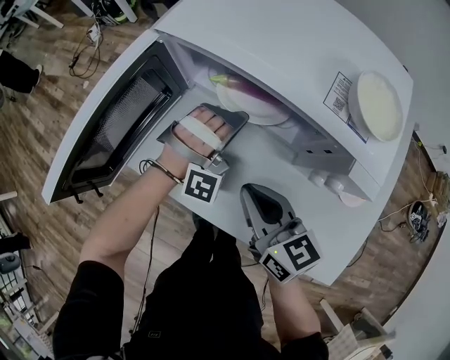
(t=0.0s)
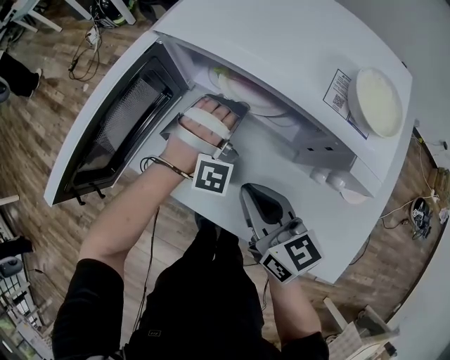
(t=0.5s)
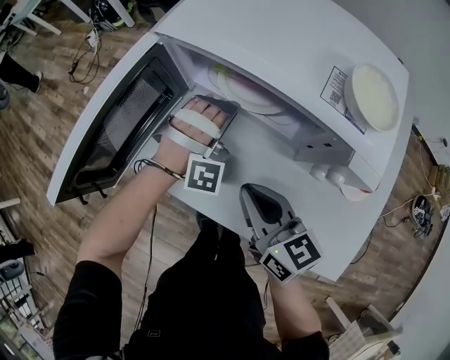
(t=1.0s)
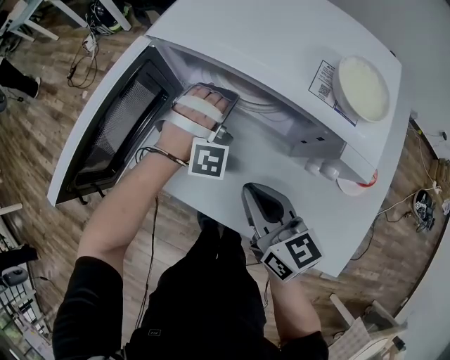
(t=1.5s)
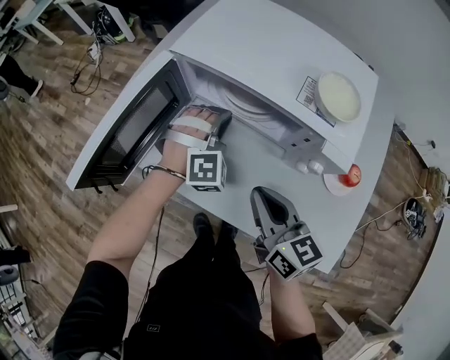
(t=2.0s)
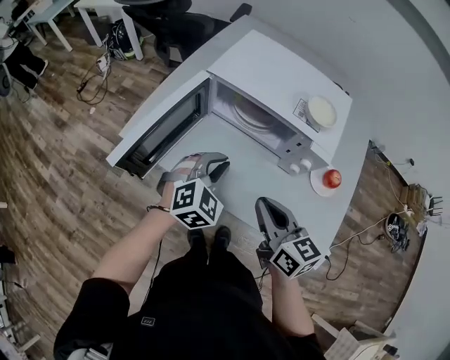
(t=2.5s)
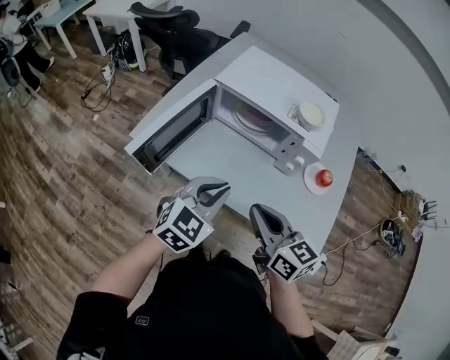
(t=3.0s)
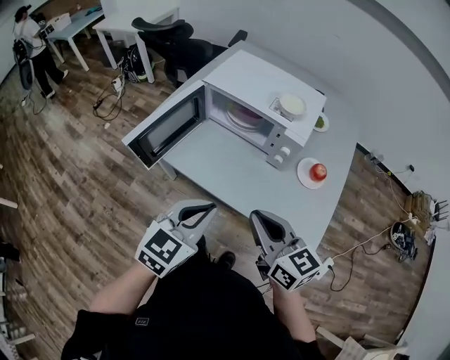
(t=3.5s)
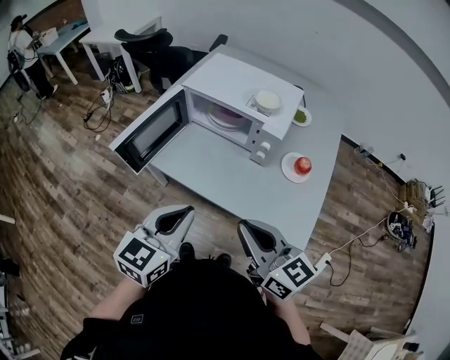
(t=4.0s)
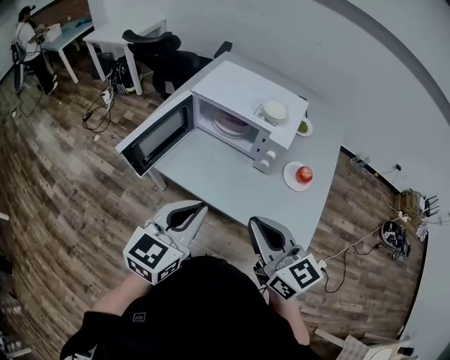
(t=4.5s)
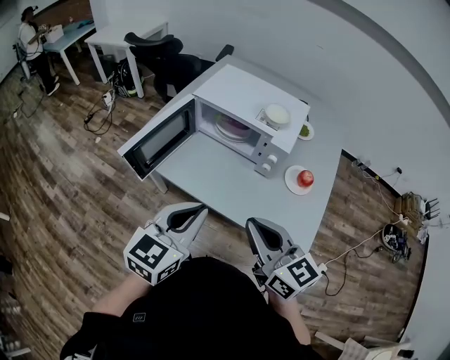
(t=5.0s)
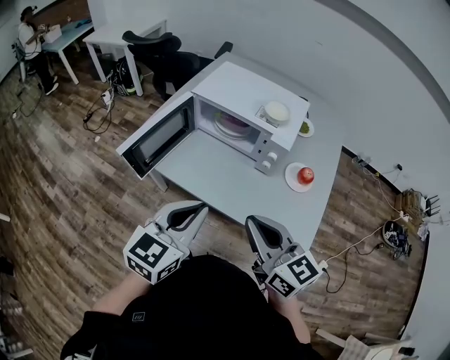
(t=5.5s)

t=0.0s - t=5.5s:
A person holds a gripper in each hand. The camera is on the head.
t=0.0s - t=2.0s: The left gripper changes its angle by some 20 degrees. Meanwhile the right gripper moves upward, roughly 5 cm.
t=2.0s - t=3.5s: The right gripper heads backward and upward, covering roughly 25 cm; the left gripper is displaced backward and upward by roughly 40 cm, and rolls counterclockwise, seen from behind, by some 60 degrees.
t=3.5s - t=5.5s: The grippers stay close to where they were, moving slightly.

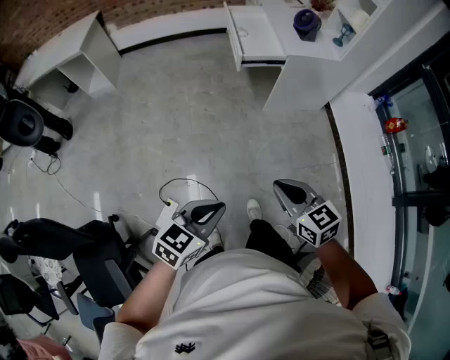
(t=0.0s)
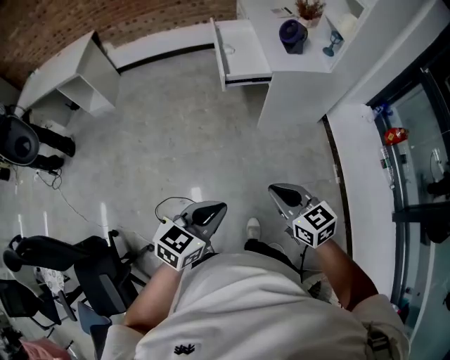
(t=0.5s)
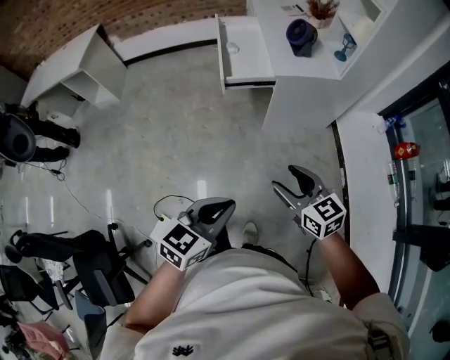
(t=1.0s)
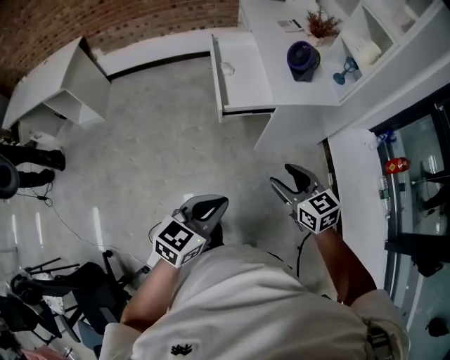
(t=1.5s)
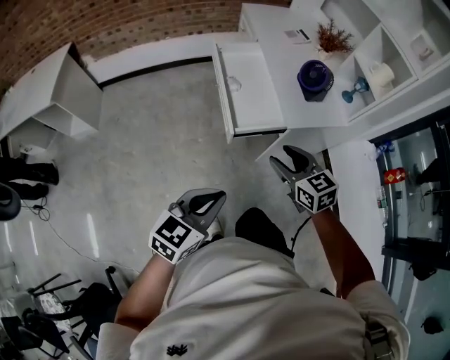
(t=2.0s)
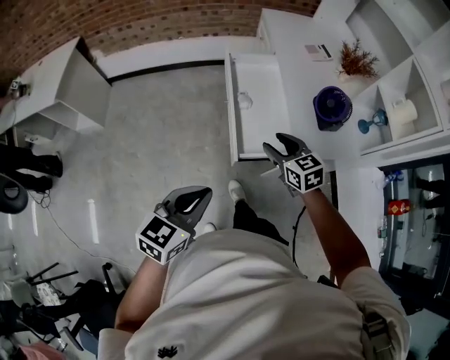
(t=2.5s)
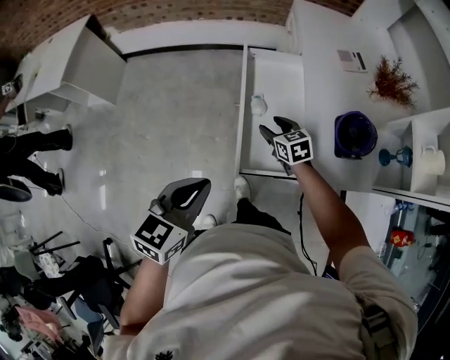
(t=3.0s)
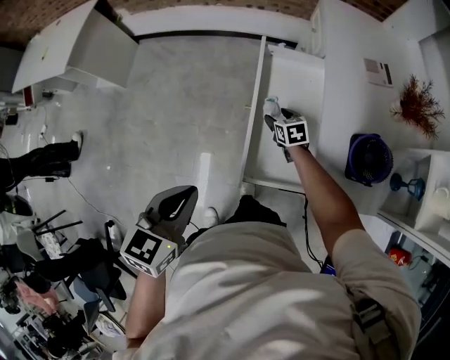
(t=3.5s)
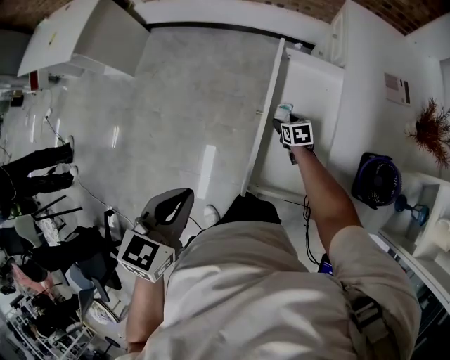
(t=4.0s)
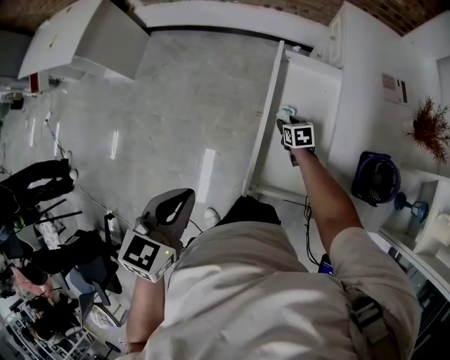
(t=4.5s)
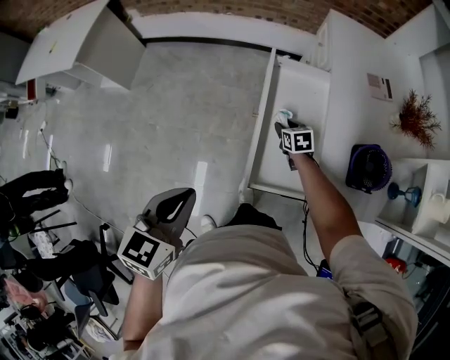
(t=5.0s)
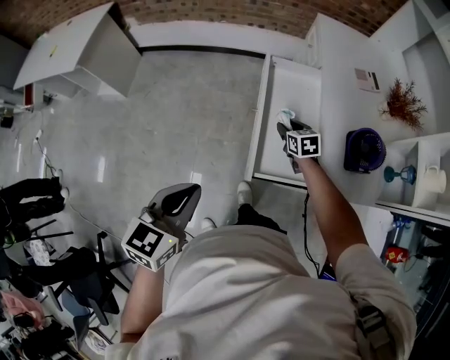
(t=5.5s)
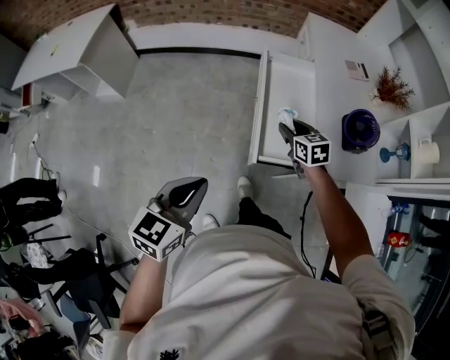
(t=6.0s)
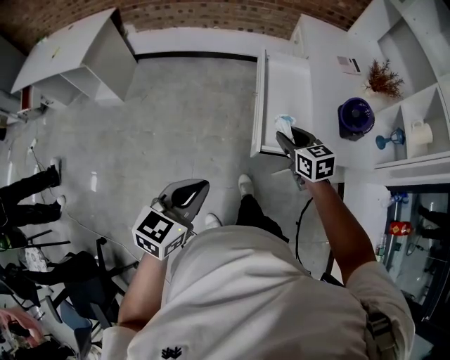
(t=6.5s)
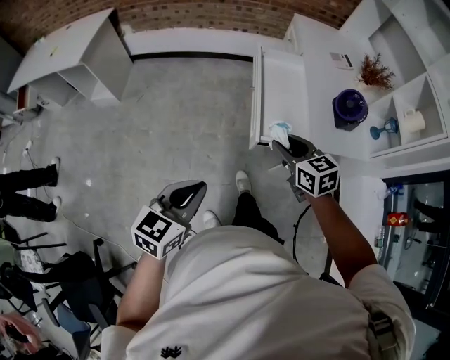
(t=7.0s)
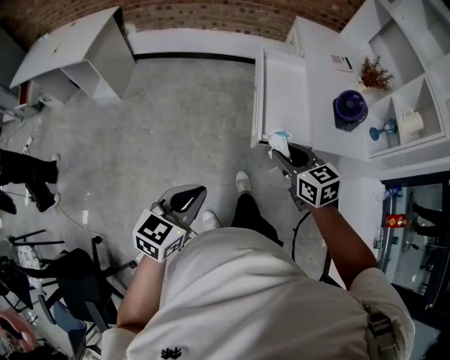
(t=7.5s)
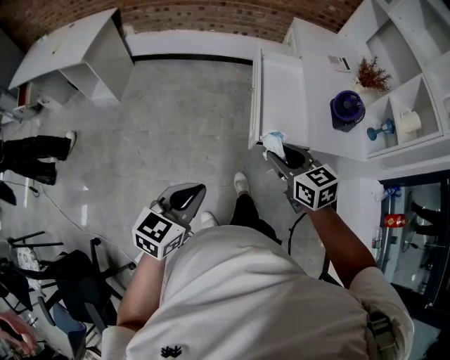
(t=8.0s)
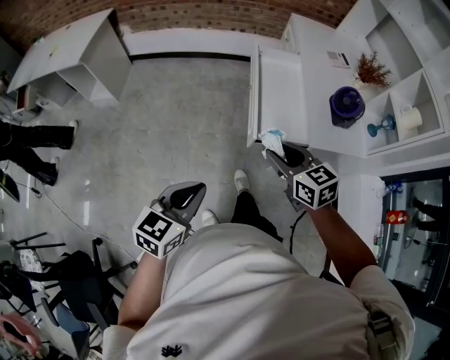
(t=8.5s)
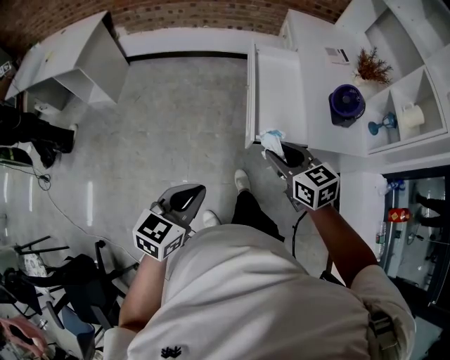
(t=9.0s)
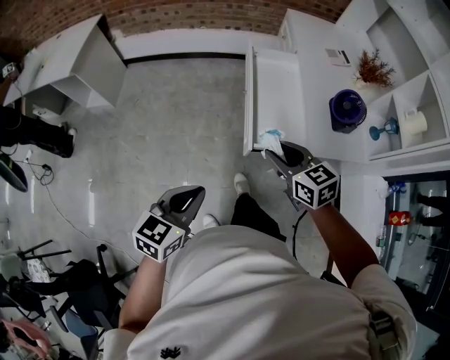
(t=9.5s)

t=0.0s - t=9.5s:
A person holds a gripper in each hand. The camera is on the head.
t=0.0s - t=2.0s: The two grippers travel together, forward, roughly 50 cm. The right gripper opens its fingers.
t=2.0s - t=4.0s: The left gripper ends up roughly 35 cm from where it was, and rotates approximately 40 degrees, while the right gripper shifts by about 60 cm, and turns by roughly 30 degrees.
t=4.0s - t=5.5s: The right gripper goes roughly 20 cm upward and backward, and closes its fingers. Meanwhile the left gripper heads backward, covering approximately 10 cm.
t=5.5s - t=7.5s: The left gripper heads backward, covering about 25 cm, while the right gripper heads backward and upward, covering approximately 40 cm.
t=7.5s - t=9.5s: The grippers both shift forward by roughly 5 cm.

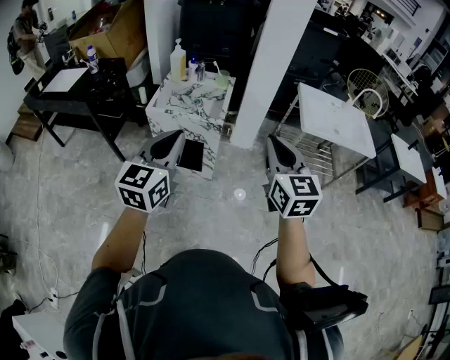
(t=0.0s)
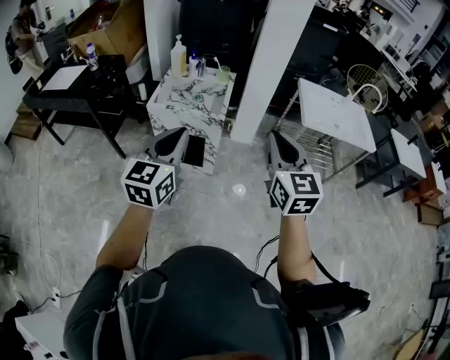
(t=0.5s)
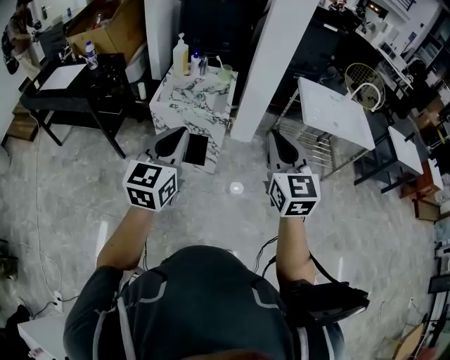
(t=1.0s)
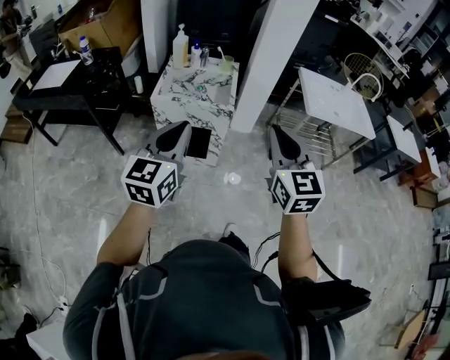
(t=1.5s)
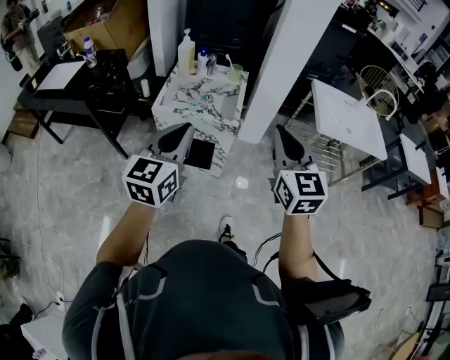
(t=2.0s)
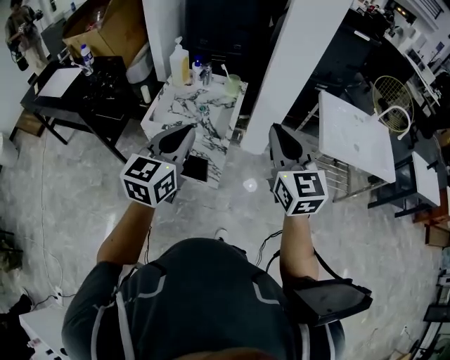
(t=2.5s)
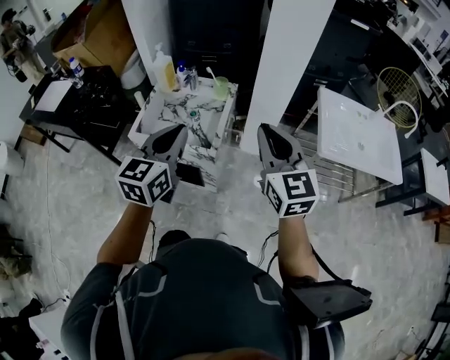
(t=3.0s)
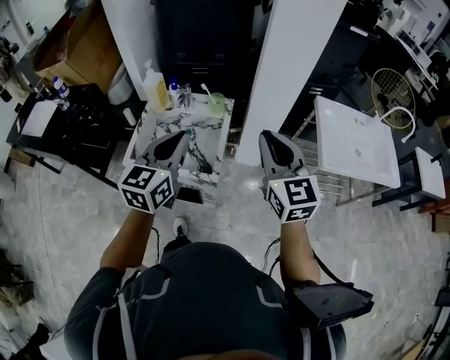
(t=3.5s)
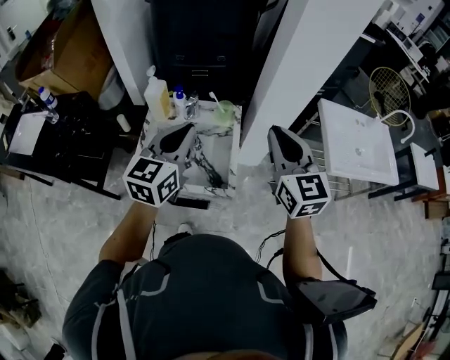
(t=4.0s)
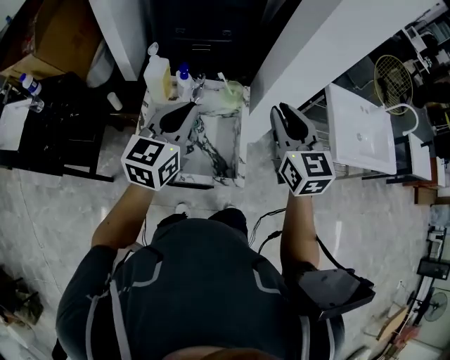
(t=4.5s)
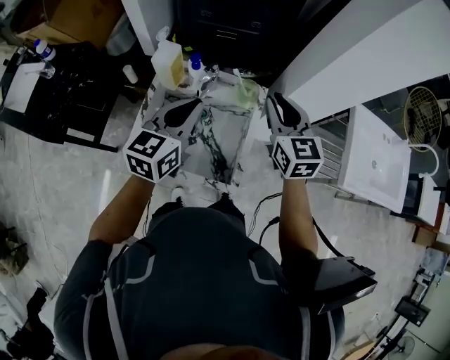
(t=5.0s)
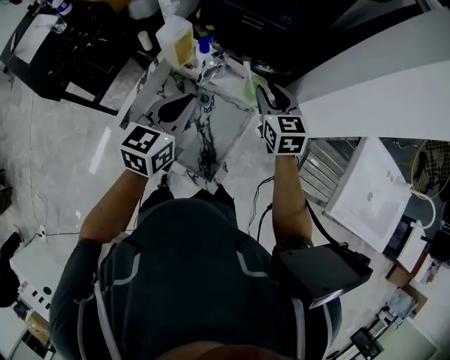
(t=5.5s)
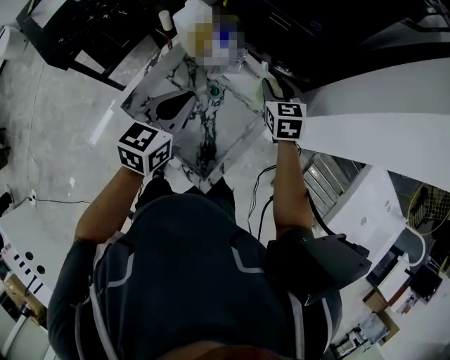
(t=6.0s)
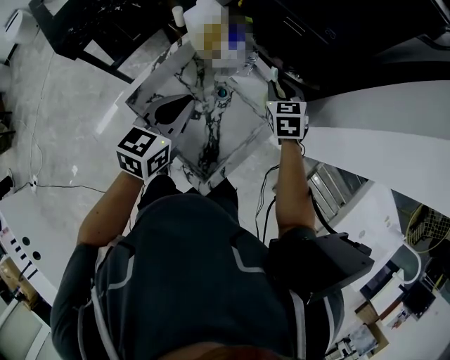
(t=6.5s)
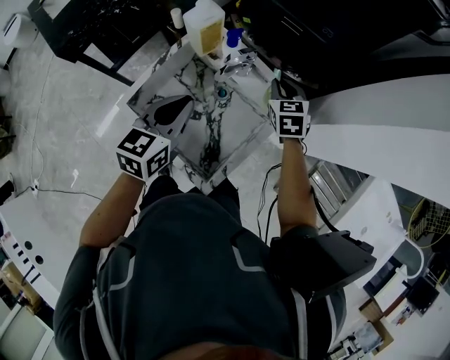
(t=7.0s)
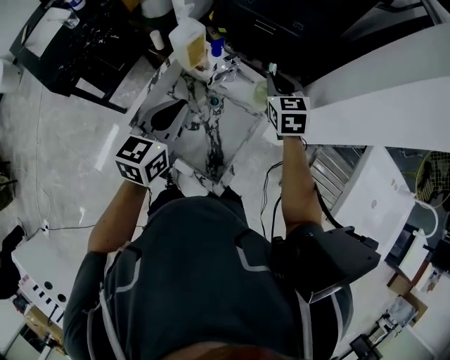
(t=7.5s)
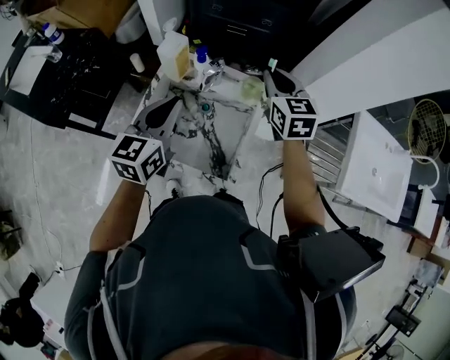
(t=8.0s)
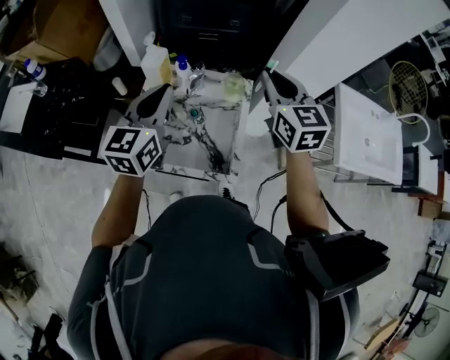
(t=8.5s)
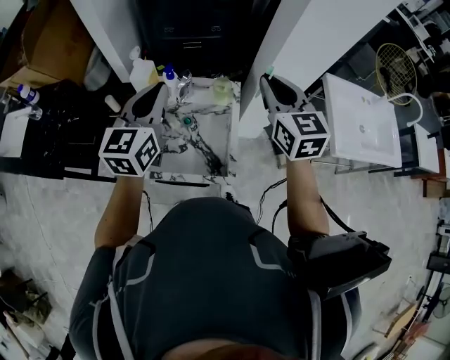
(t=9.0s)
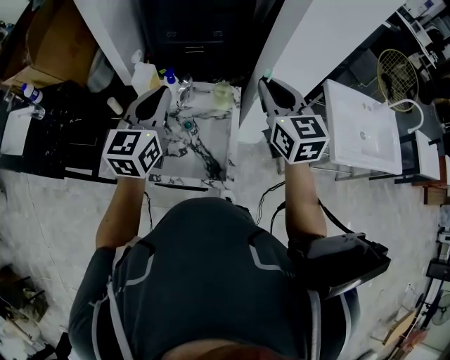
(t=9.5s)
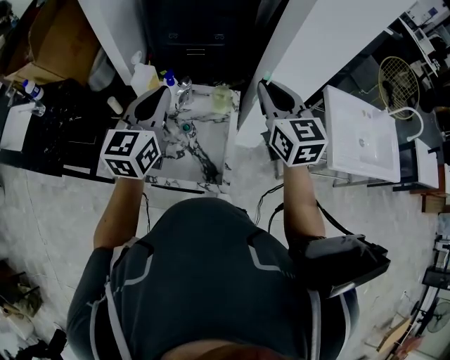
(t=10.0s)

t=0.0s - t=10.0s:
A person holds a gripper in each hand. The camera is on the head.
t=0.0s - t=2.0s: Both grippers travel together forward and to the left, approximately 10 cm.
t=2.0s - t=4.0s: Both grippers travel together forward, about 40 cm.
t=4.0s - t=6.0s: The left gripper shifts approximately 15 cm downward, and rotates some 30 degrees. Meanwhile the right gripper ends up roughly 50 cm from where it was, points its fingers approximately 30 degrees further downward, and opens.
t=6.0s - t=8.0s: The left gripper is displaced upward by about 10 cm, while the right gripper goes some 15 cm upward, and closes.
t=8.0s - t=10.0s: The left gripper is displaced upward by about 10 cm. The right gripper is displaced upward, backward and to the right by roughly 15 cm.

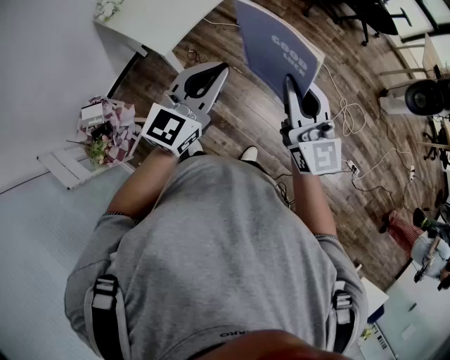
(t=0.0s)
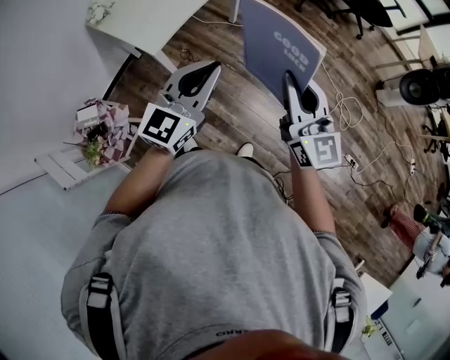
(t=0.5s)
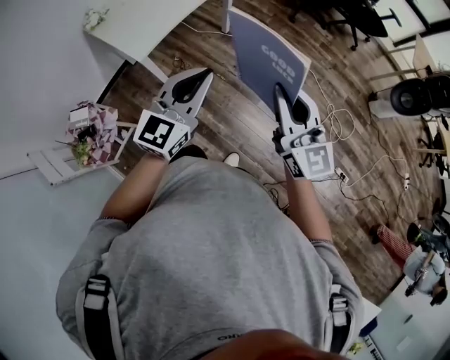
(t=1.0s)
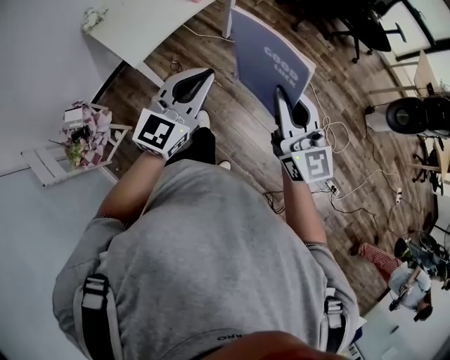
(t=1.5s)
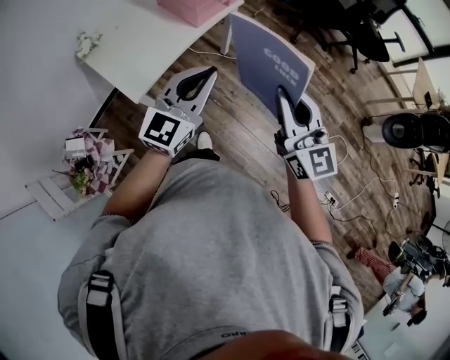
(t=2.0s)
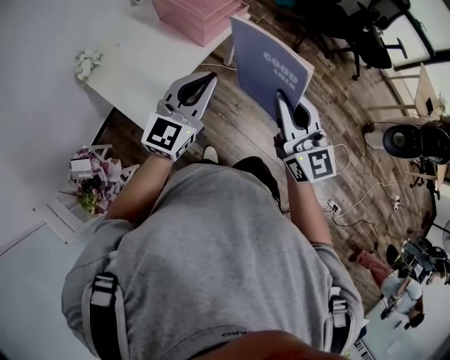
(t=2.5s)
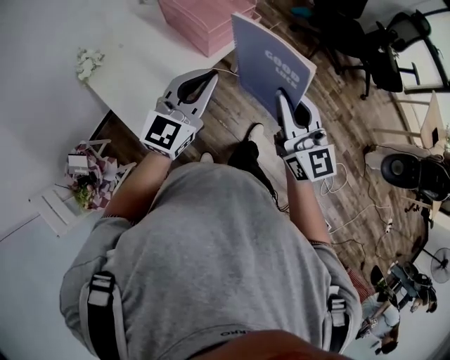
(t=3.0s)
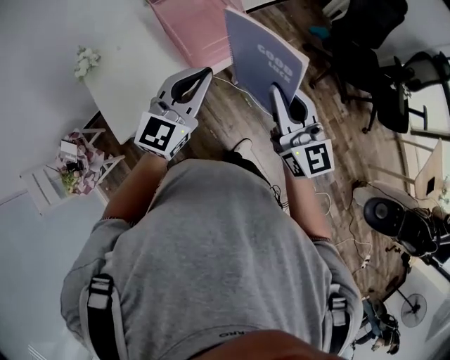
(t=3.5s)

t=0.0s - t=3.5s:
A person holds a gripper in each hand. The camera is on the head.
t=0.0s - t=2.0s: The right gripper travels forward and to the right by approximately 20 cm; the left gripper shifts roughly 20 cm forward.
t=2.0s - t=3.5s: The grippers both shift forward by some 35 cm.
